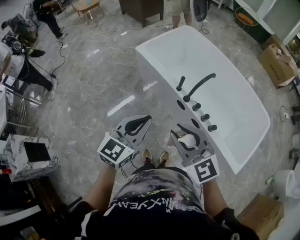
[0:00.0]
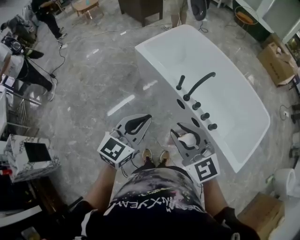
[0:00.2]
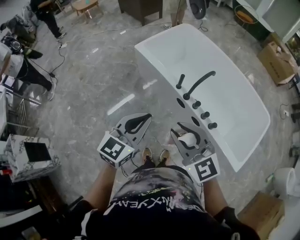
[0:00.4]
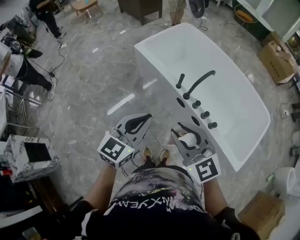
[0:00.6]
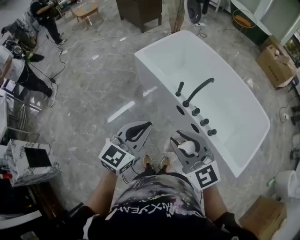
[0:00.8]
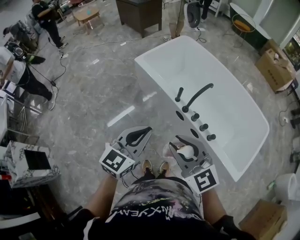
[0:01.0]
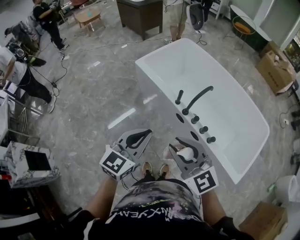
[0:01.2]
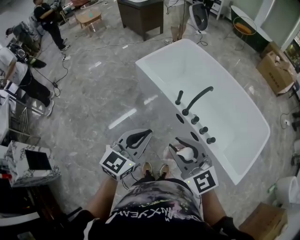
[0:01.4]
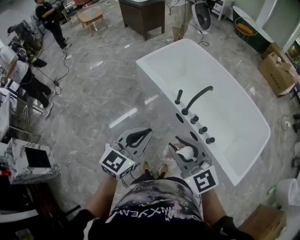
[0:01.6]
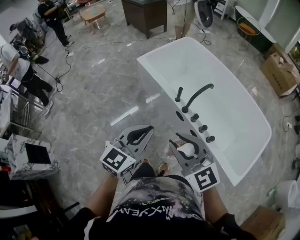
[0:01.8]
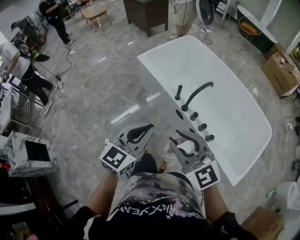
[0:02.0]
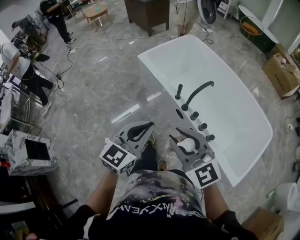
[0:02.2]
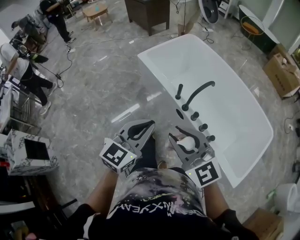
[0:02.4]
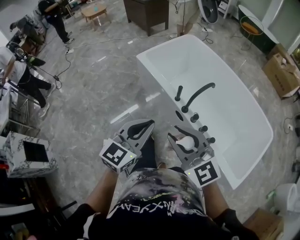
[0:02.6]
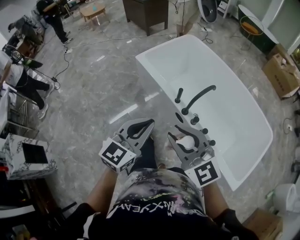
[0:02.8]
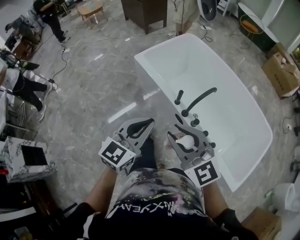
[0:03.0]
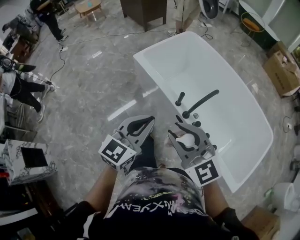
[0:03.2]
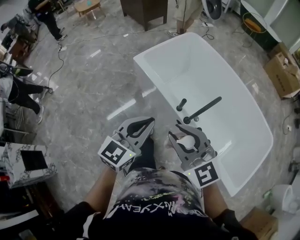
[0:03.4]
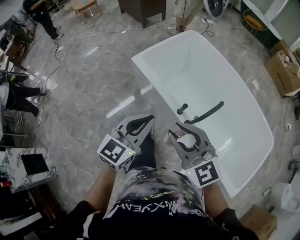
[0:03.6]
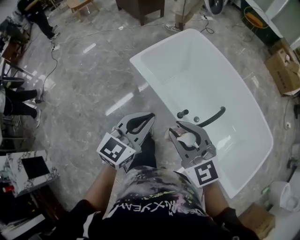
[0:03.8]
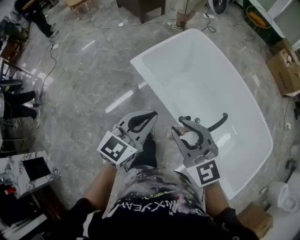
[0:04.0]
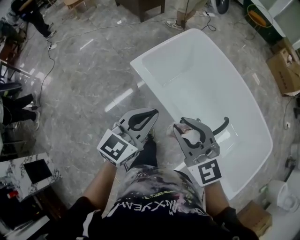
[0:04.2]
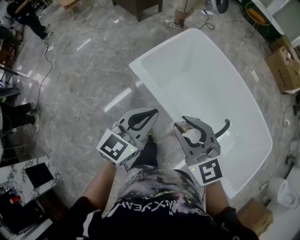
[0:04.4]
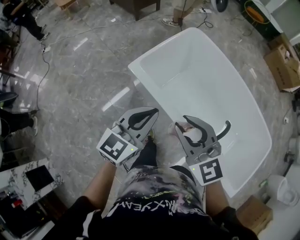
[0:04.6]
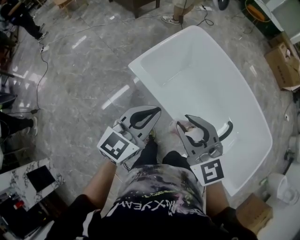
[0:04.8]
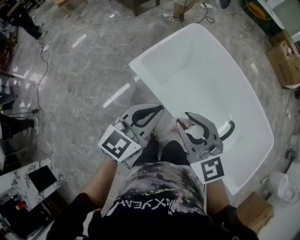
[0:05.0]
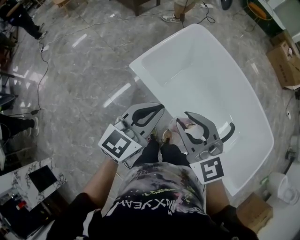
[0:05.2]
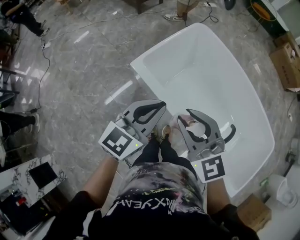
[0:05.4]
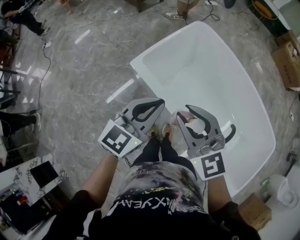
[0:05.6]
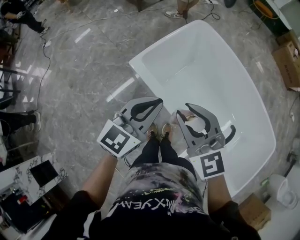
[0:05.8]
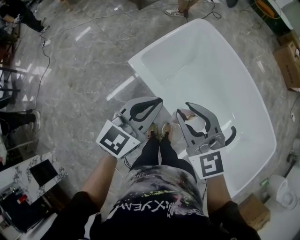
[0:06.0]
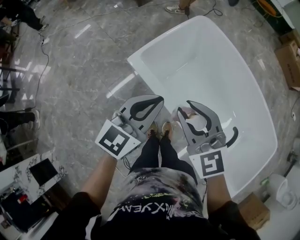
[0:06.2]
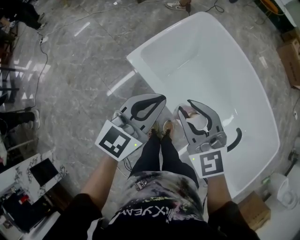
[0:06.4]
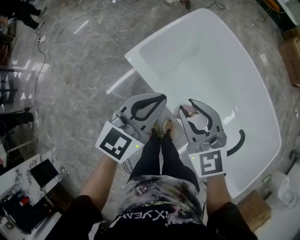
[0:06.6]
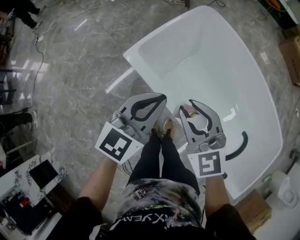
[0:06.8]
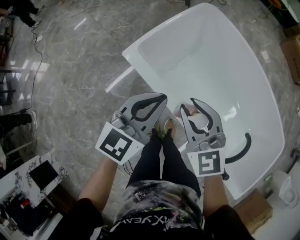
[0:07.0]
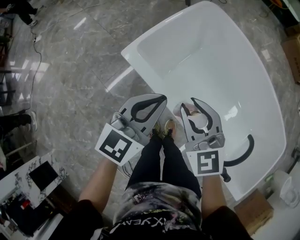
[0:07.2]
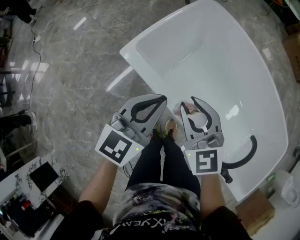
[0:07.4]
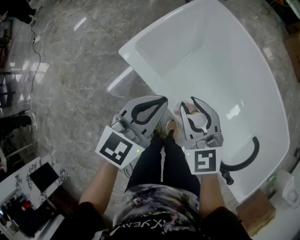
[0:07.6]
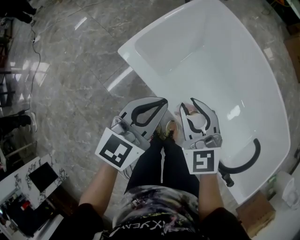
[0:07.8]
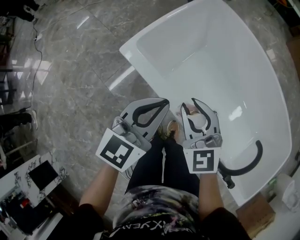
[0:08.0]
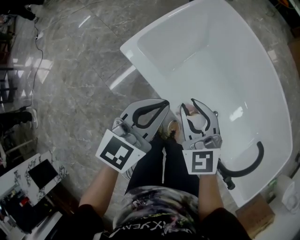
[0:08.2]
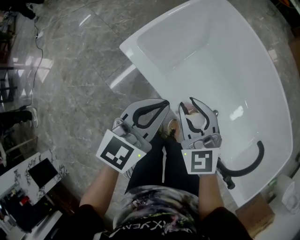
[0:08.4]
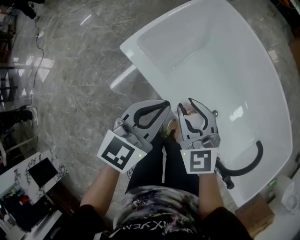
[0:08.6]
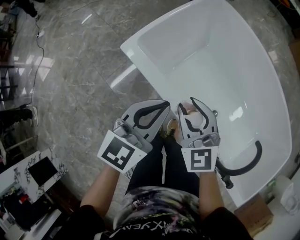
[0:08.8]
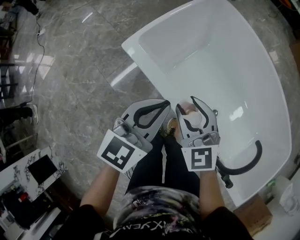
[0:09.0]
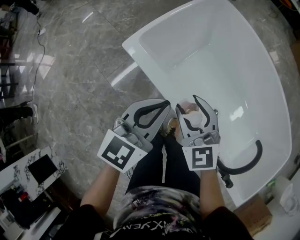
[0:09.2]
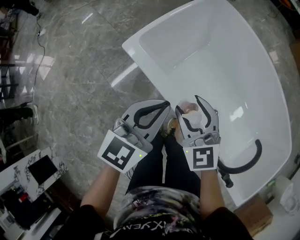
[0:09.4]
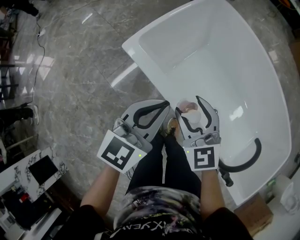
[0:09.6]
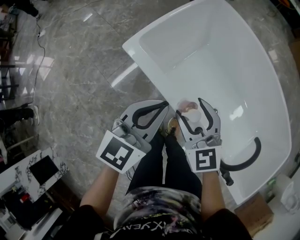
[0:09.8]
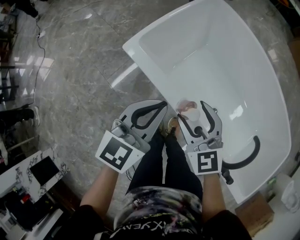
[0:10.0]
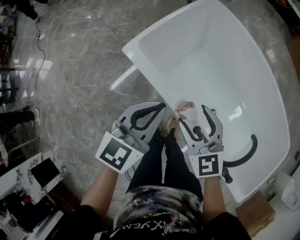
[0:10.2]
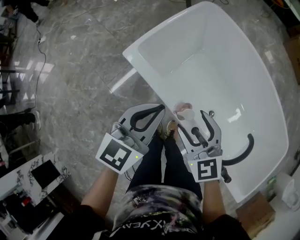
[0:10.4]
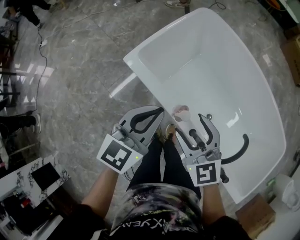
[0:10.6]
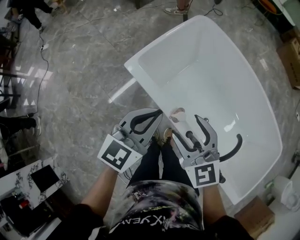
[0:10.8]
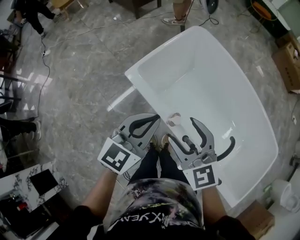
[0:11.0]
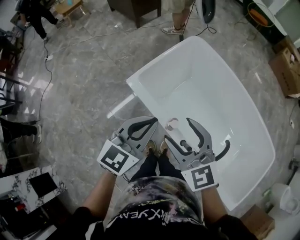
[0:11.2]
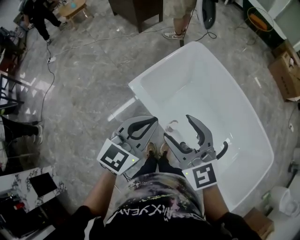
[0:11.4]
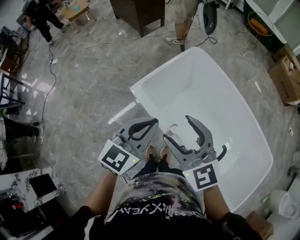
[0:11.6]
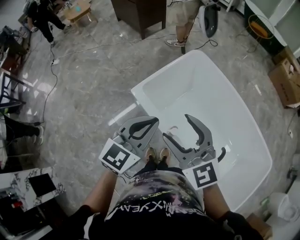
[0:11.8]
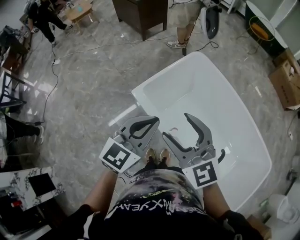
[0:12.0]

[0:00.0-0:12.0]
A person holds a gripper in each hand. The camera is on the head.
0:00.0 to 0:01.6: The grippers make only small movements.
0:01.6 to 0:03.0: Both grippers move forward, some 10 cm.
0:03.0 to 0:04.4: The grippers both shift forward by roughly 35 cm.
0:04.4 to 0:06.0: Both grippers move forward, some 10 cm.
0:06.0 to 0:07.6: The two grippers go about 20 cm downward.
0:07.6 to 0:09.0: The grippers stay close to where they were, moving slightly.
0:09.0 to 0:10.4: The grippers both shift upward by roughly 5 cm. The right gripper opens its fingers.
0:10.4 to 0:12.0: Both grippers move upward, some 25 cm. The right gripper changes its angle by about 20 degrees.

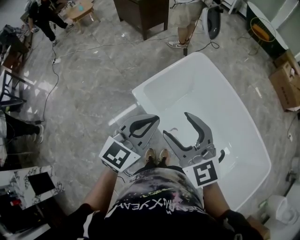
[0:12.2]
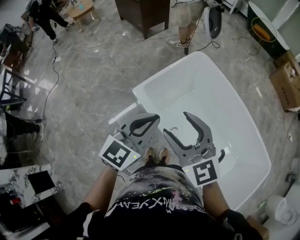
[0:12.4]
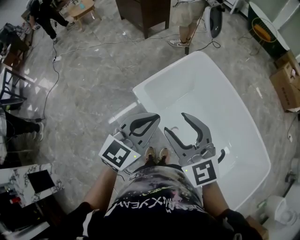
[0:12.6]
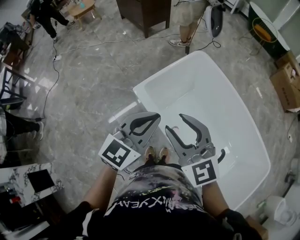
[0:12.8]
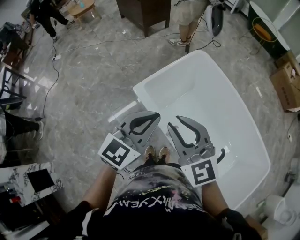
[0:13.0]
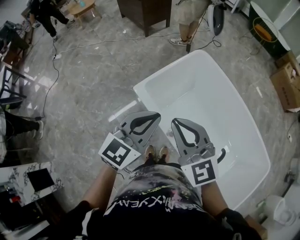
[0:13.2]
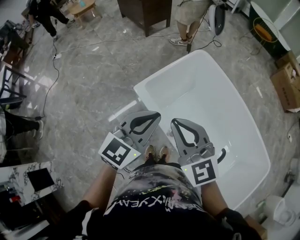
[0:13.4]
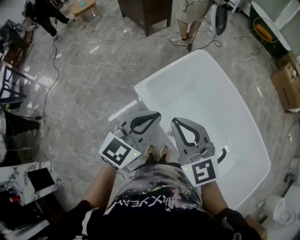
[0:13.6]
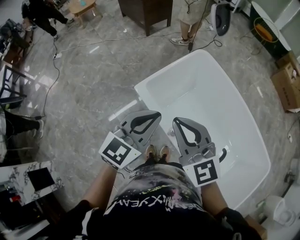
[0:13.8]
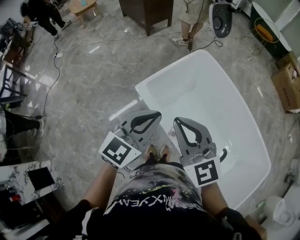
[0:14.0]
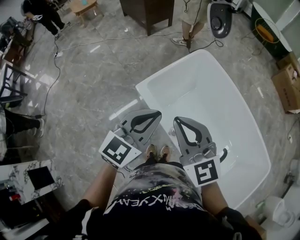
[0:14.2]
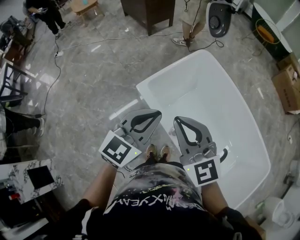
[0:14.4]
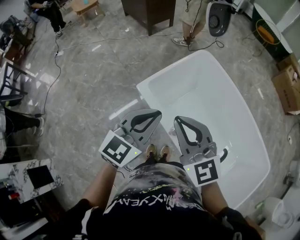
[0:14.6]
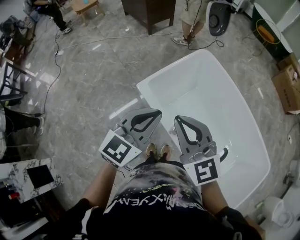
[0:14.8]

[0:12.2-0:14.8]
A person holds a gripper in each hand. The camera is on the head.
0:12.2 to 0:13.4: The right gripper closes its fingers.
0:13.4 to 0:14.8: Both grippers stay put.

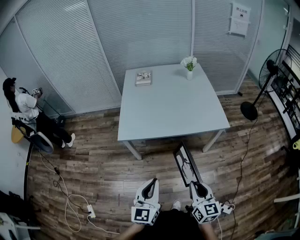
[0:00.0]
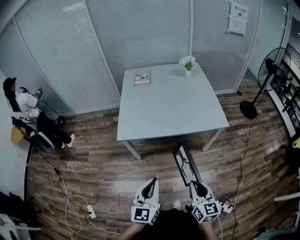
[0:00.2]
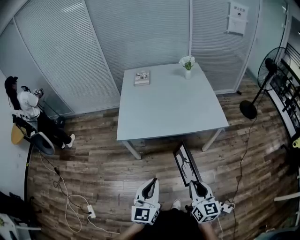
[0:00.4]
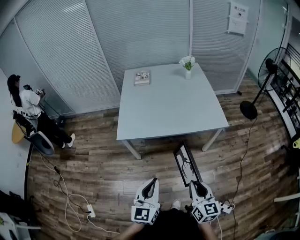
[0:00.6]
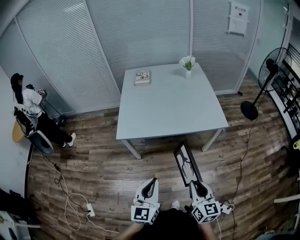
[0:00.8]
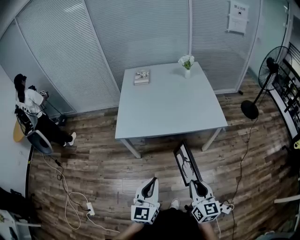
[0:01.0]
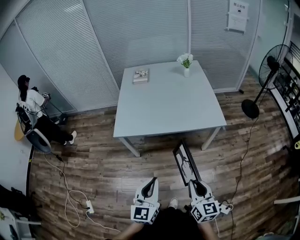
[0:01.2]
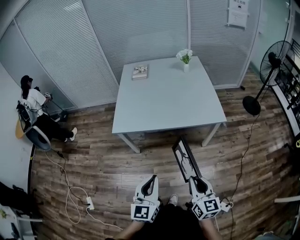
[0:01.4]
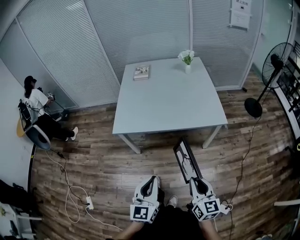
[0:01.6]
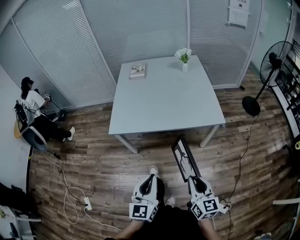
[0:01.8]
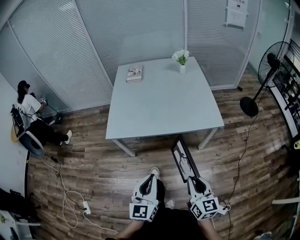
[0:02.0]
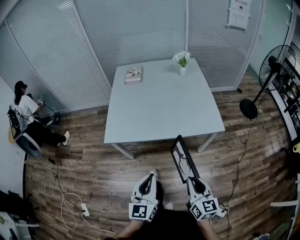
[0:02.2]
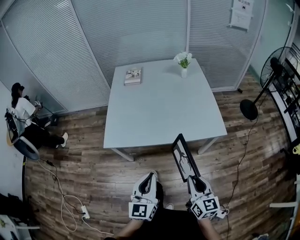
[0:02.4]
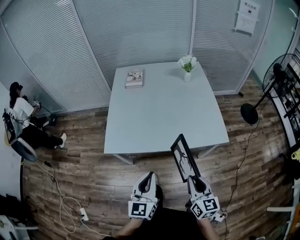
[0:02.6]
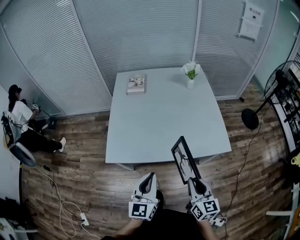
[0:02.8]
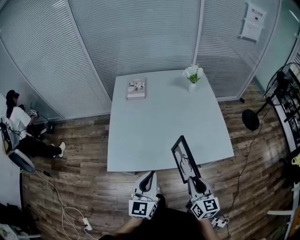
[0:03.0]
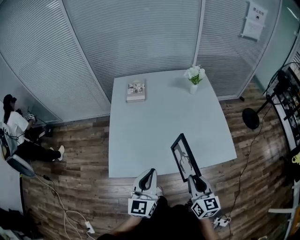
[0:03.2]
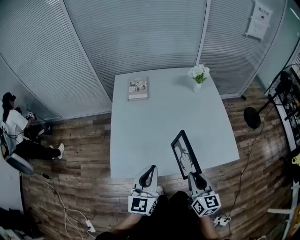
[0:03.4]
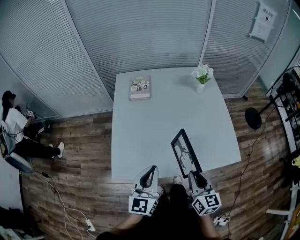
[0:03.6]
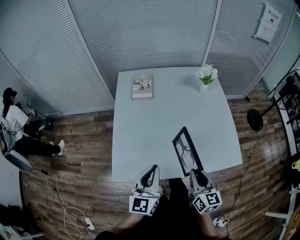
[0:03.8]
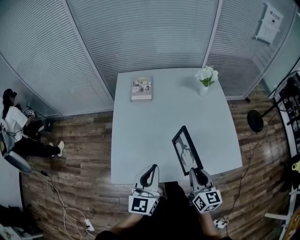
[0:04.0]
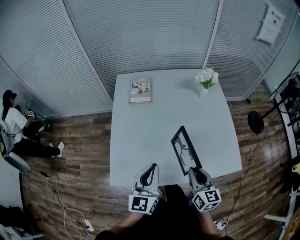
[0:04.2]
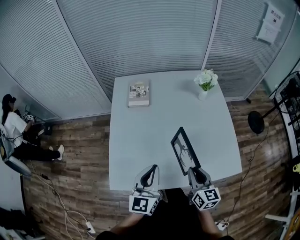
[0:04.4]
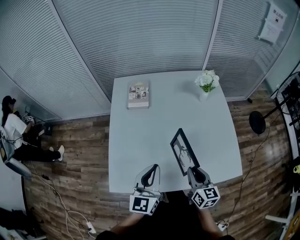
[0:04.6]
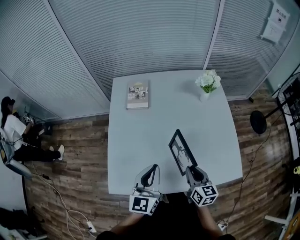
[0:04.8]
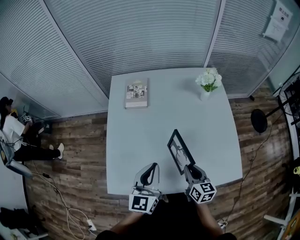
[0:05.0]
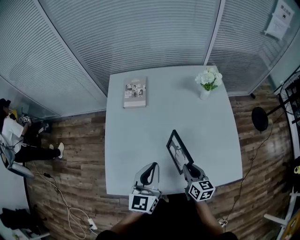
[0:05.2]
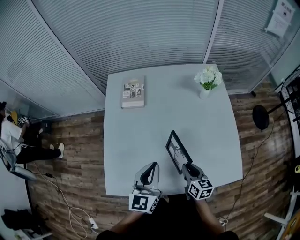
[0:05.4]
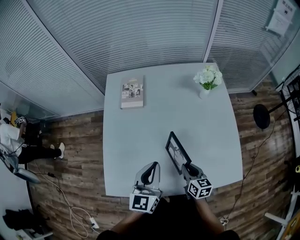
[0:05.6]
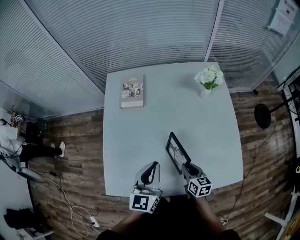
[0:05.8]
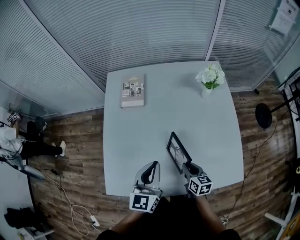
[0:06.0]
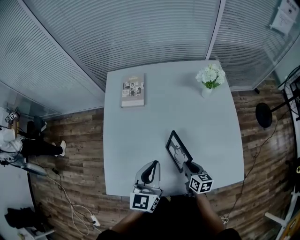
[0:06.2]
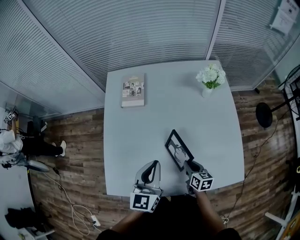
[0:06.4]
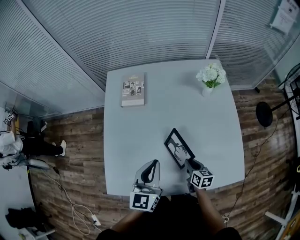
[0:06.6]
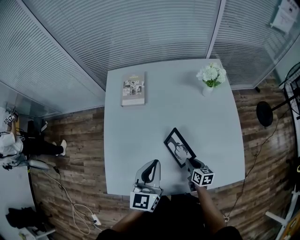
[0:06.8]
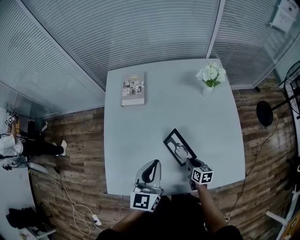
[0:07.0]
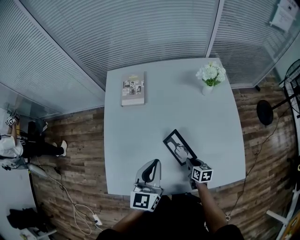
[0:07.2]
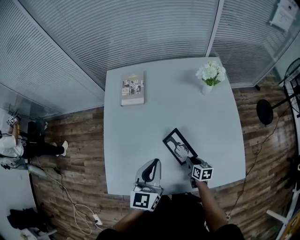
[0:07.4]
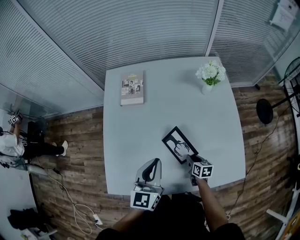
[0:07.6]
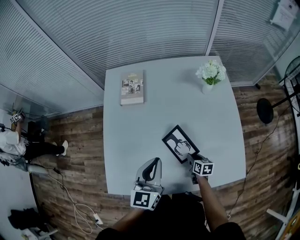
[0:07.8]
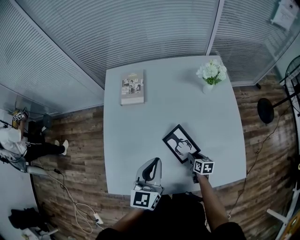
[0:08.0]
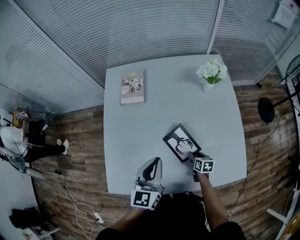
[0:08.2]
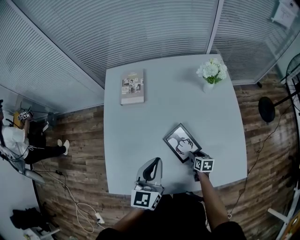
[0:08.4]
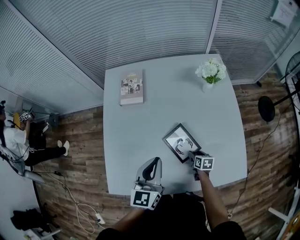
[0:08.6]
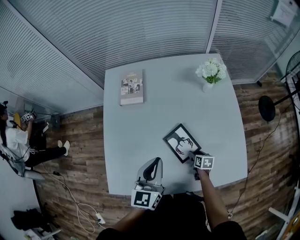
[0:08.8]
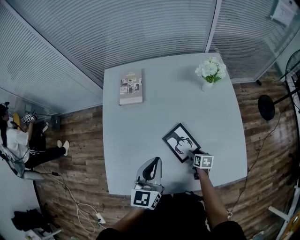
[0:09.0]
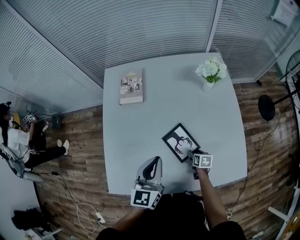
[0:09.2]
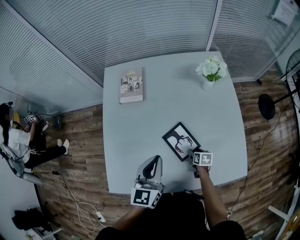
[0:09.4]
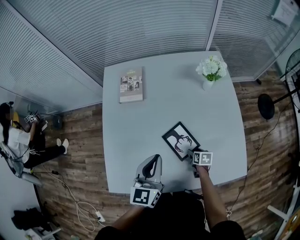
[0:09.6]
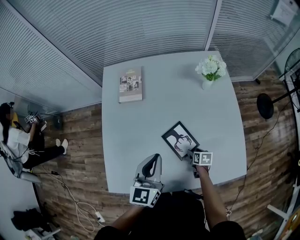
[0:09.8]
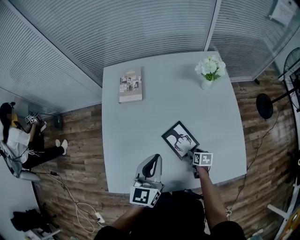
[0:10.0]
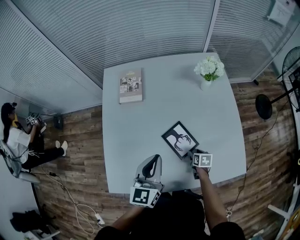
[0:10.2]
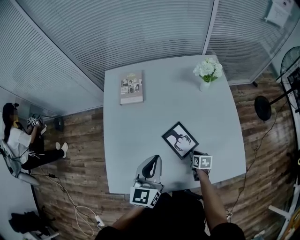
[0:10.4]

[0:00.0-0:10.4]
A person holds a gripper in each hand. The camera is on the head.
0:00.0 to 0:01.4: The two grippers go approximately 10 cm to the right.
0:01.4 to 0:03.0: The two grippers go approximately 35 cm forward.
0:03.0 to 0:04.4: Both grippers travel together forward, roughly 20 cm.
0:04.4 to 0:06.0: The right gripper heads downward and forward, covering some 20 cm, and turns by approximately 20 degrees; the left gripper goes about 15 cm forward and to the right.
0:06.0 to 0:07.4: The right gripper goes roughly 10 cm downward.
0:07.4 to 0:09.0: The right gripper shifts about 5 cm downward, and opens up.
0:09.0 to 0:10.4: The right gripper closes up.
